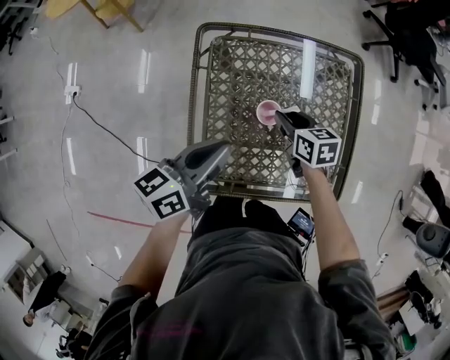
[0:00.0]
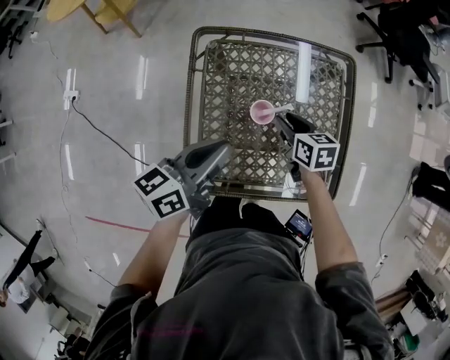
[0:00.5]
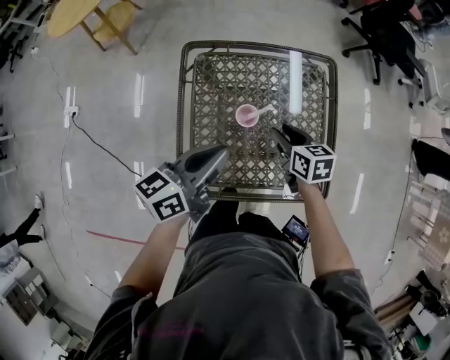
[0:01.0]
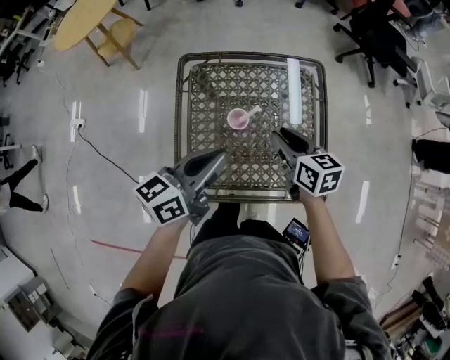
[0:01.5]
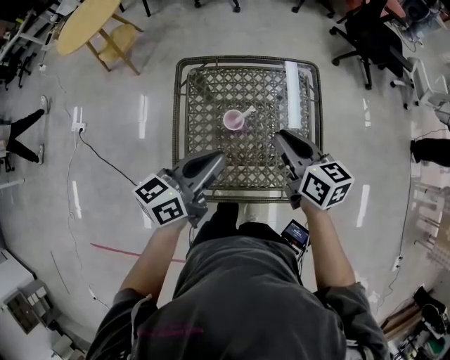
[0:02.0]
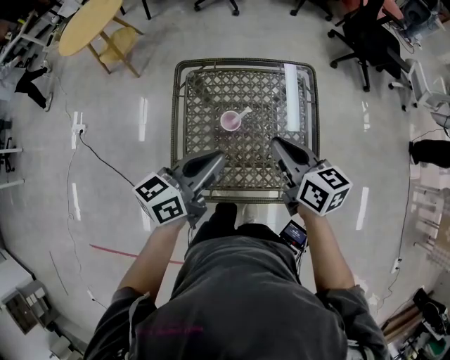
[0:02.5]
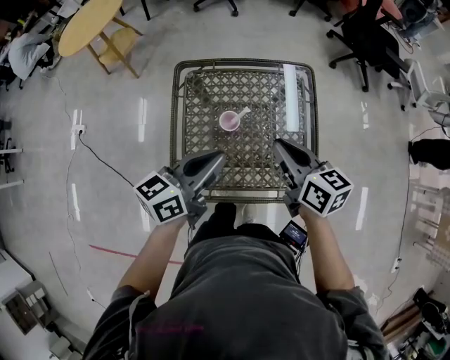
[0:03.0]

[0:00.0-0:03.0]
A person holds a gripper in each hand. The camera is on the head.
0:00.0 to 0:01.5: The left gripper is displaced to the right and upward by about 10 cm, while the right gripper travels upward, to the right and backward by about 15 cm.
0:01.5 to 0:03.0: The right gripper heads upward, covering roughly 10 cm, and closes.

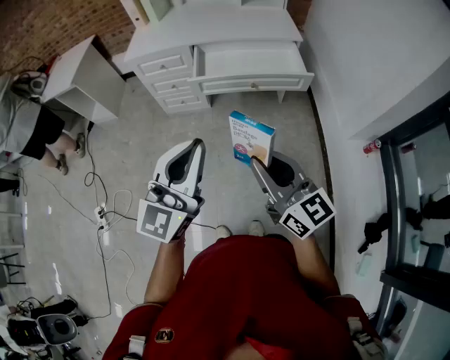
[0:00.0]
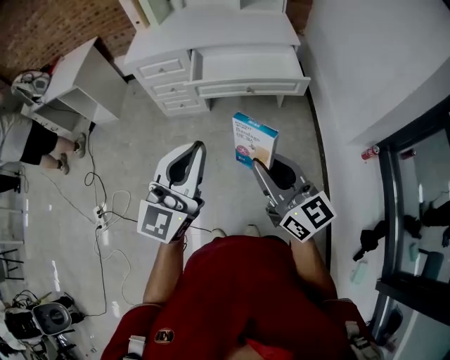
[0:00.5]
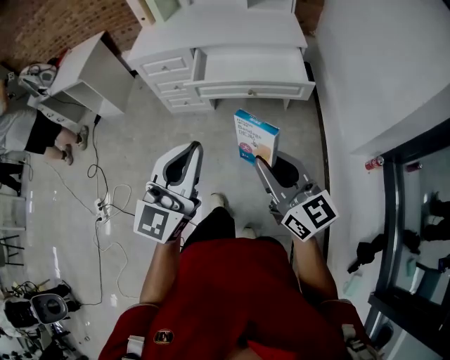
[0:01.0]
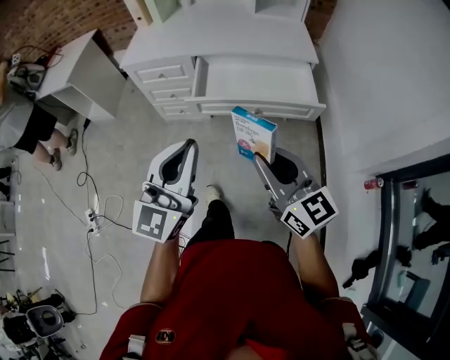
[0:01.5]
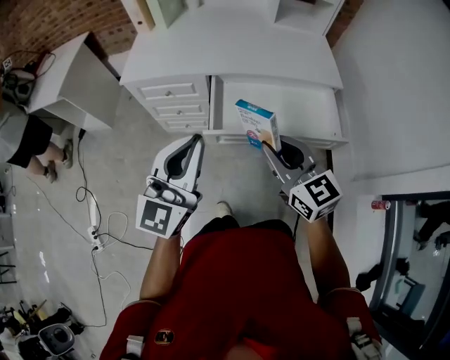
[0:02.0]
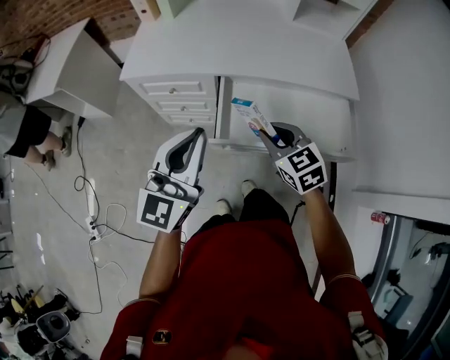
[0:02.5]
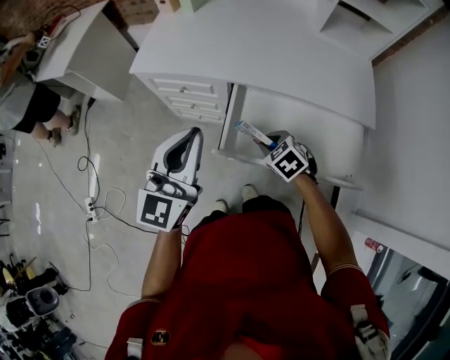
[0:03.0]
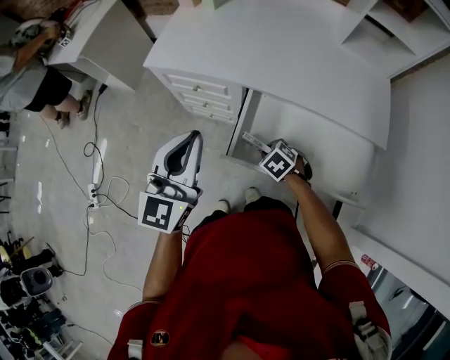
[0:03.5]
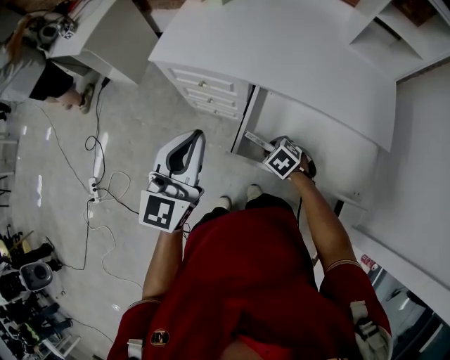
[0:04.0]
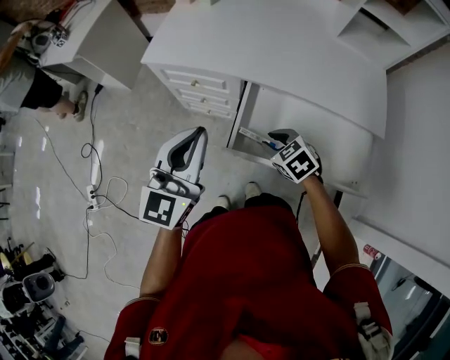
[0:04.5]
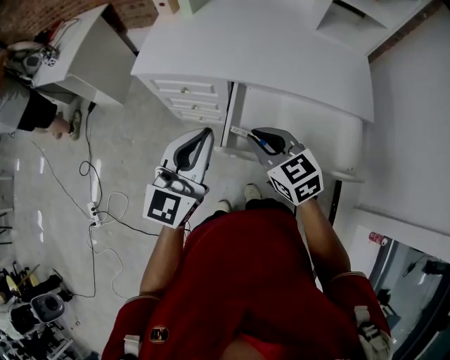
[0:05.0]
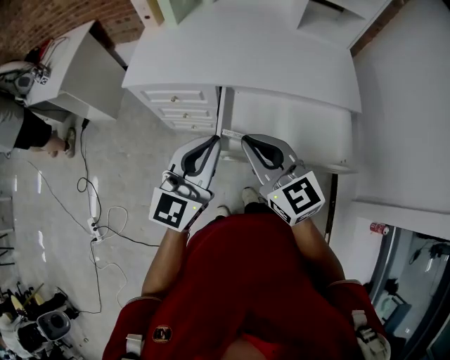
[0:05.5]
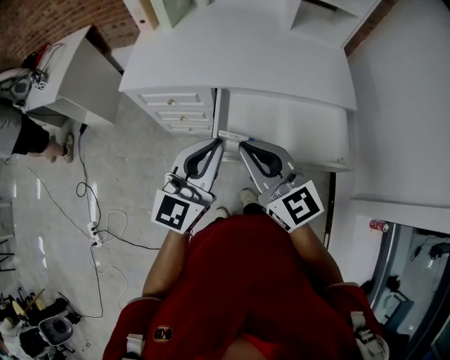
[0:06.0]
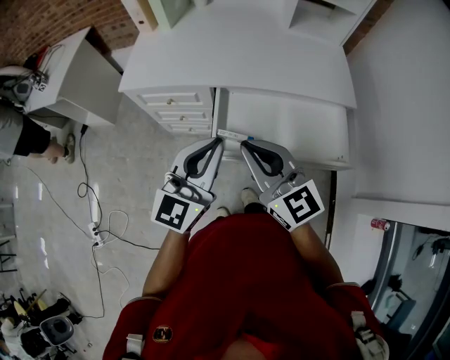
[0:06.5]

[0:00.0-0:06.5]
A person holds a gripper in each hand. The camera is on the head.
0:00.0 to 0:02.0: Both grippers travel together forward, some 35 cm.
0:02.0 to 0:04.5: The right gripper heads downward, covering about 20 cm, and tips its fingers downward by some 40 degrees. The left gripper moves about 15 cm.
0:04.5 to 0:06.5: The left gripper goes about 10 cm to the right and backward. The right gripper shifts roughly 25 cm upward, points its fingers roughly 50 degrees further upward, and closes.

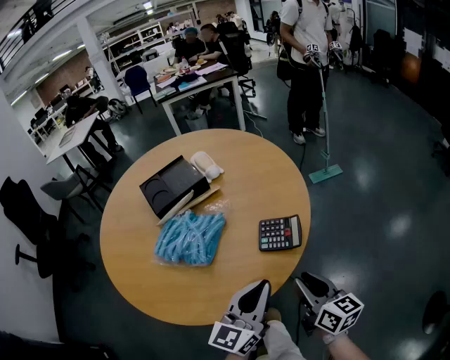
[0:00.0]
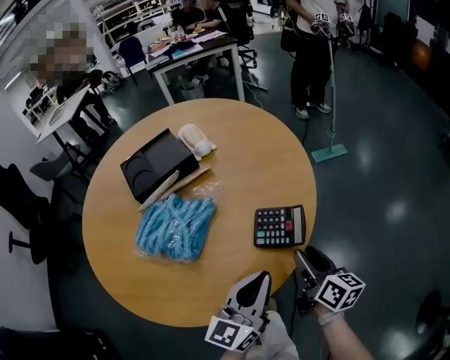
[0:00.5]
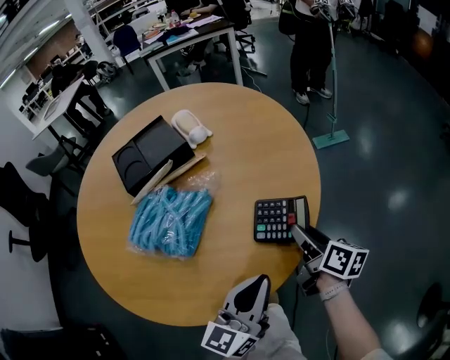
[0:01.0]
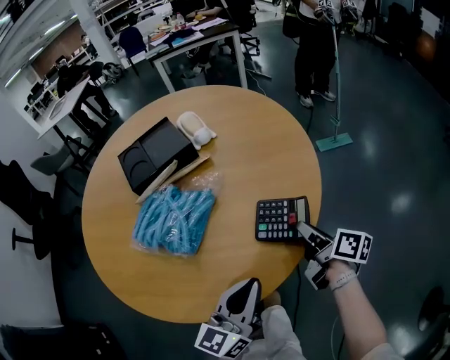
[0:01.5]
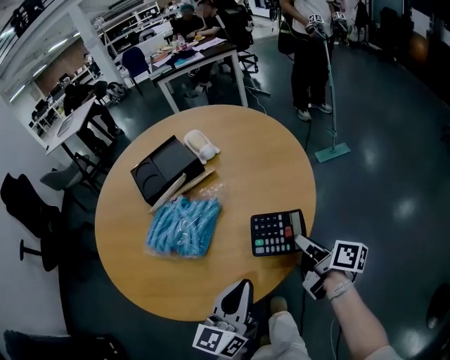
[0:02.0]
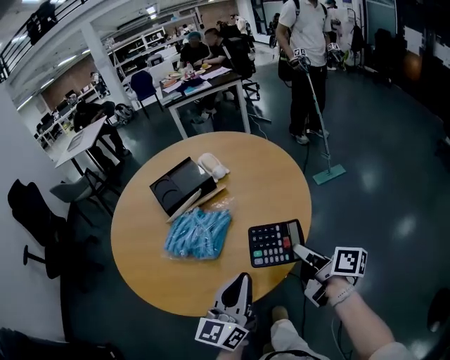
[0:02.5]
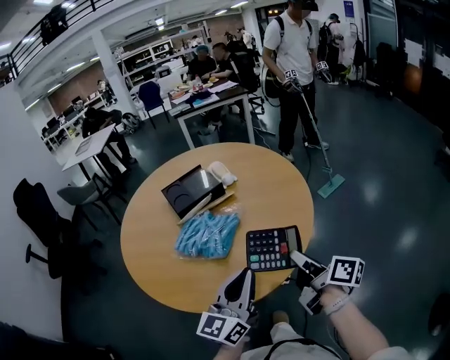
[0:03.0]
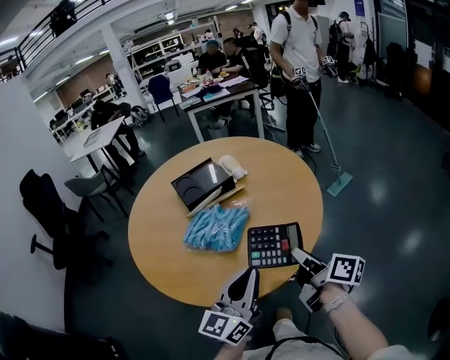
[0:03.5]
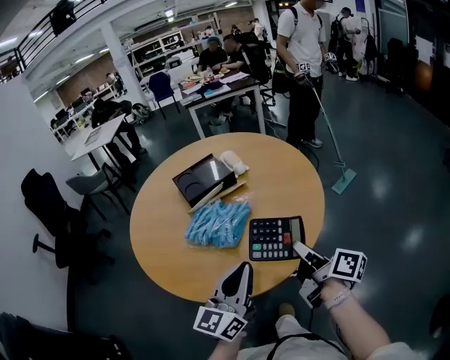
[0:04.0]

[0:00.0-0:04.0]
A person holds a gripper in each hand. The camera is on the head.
0:00.0 to 0:02.0: The left gripper shifts by roughly 5 cm. Meanwhile the right gripper heads forward and downward, covering about 15 cm, turns by roughly 40 degrees, and opens and closes again.
0:02.0 to 0:04.0: The right gripper heads upward, to the left and backward, covering roughly 20 cm. Meanwhile the left gripper is displaced upward and to the left by about 15 cm.

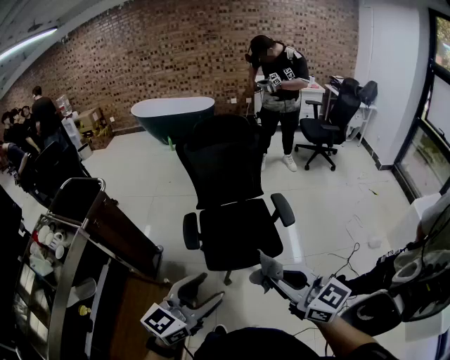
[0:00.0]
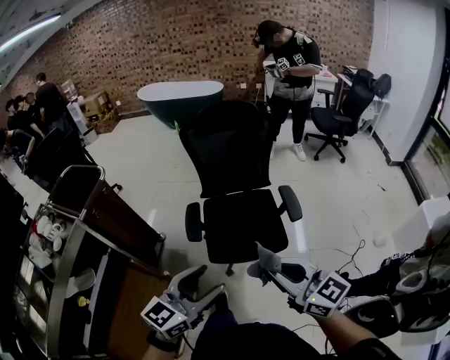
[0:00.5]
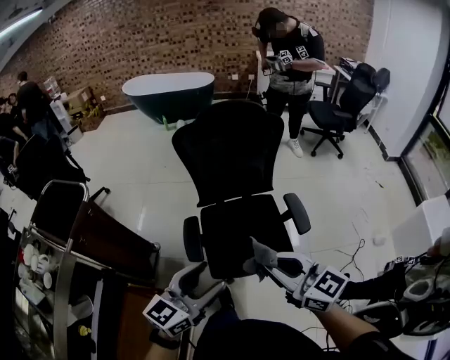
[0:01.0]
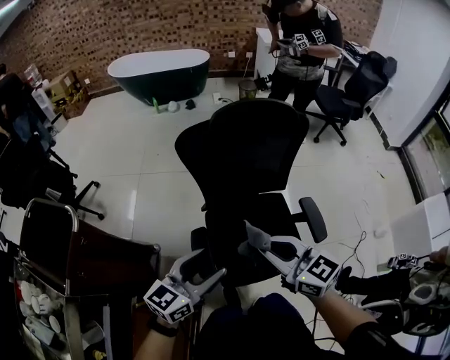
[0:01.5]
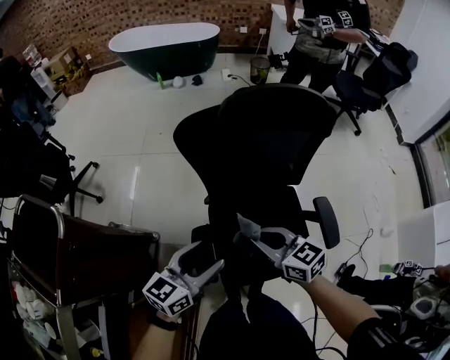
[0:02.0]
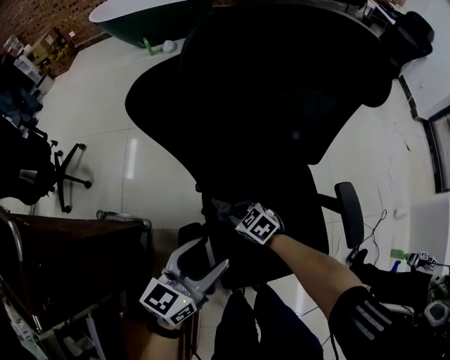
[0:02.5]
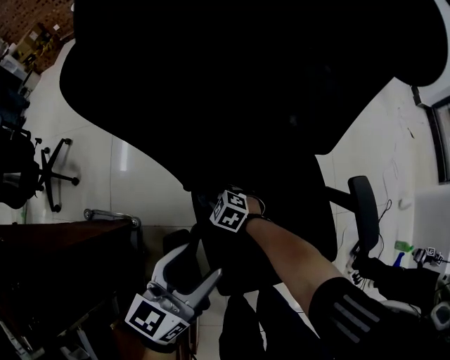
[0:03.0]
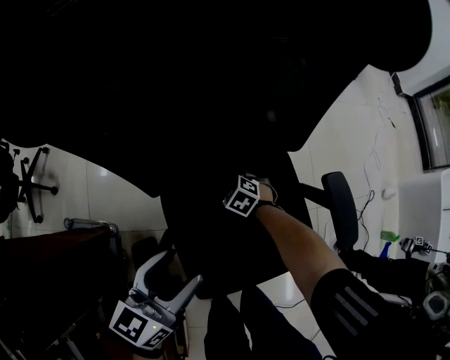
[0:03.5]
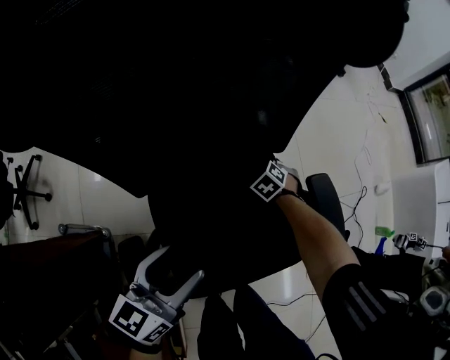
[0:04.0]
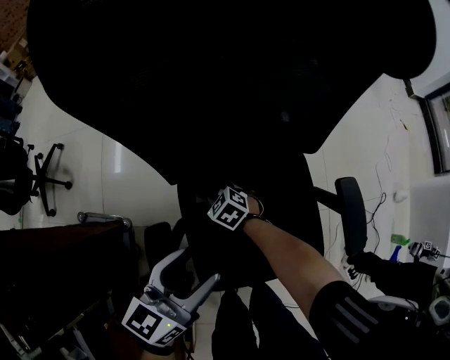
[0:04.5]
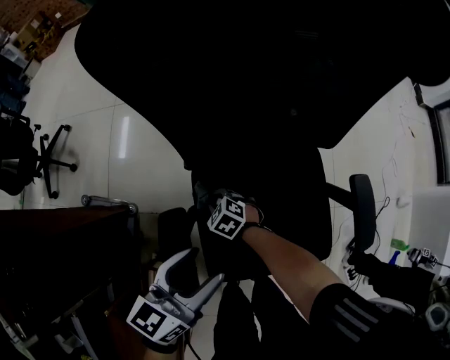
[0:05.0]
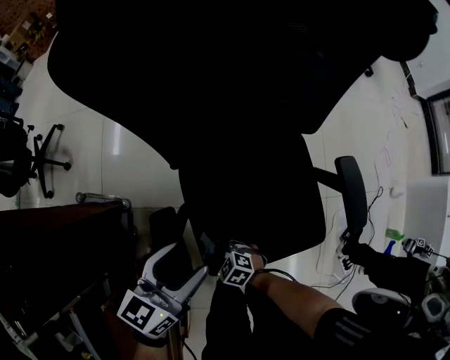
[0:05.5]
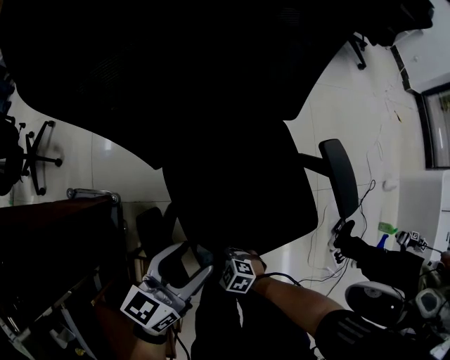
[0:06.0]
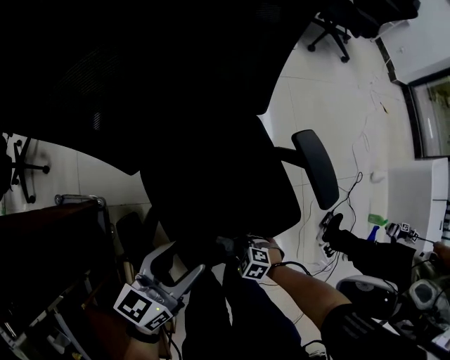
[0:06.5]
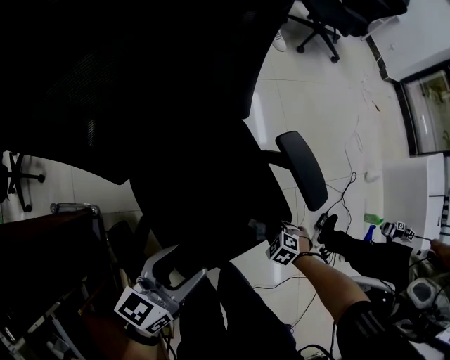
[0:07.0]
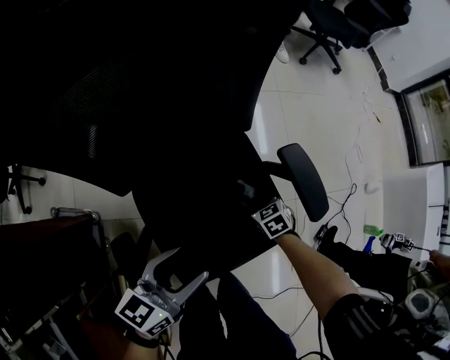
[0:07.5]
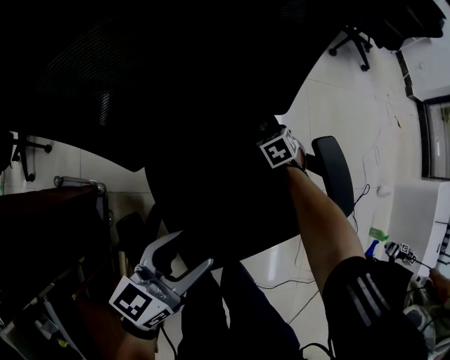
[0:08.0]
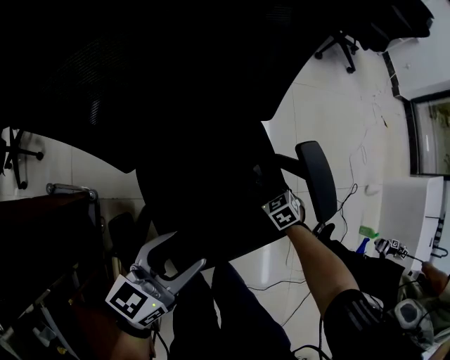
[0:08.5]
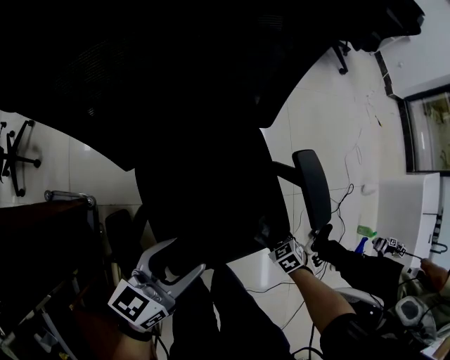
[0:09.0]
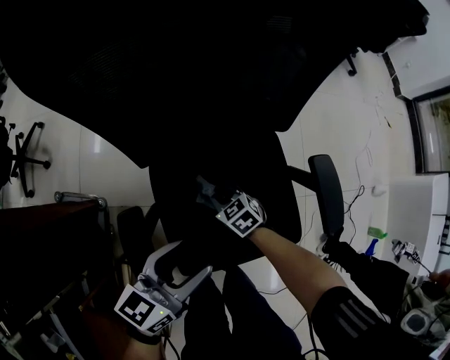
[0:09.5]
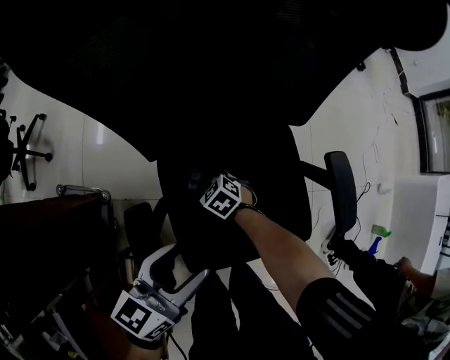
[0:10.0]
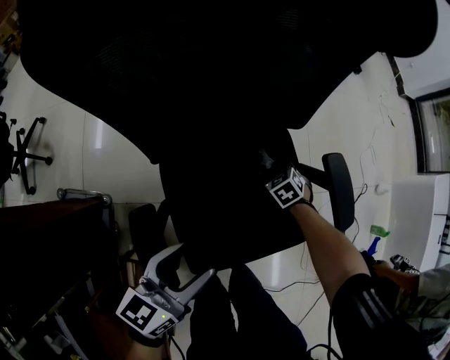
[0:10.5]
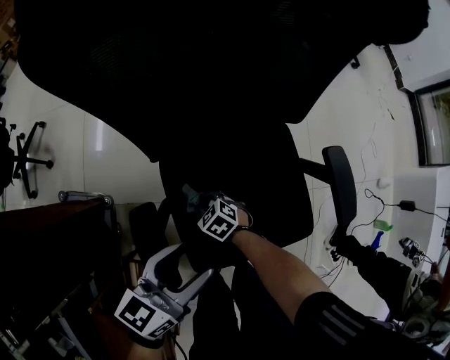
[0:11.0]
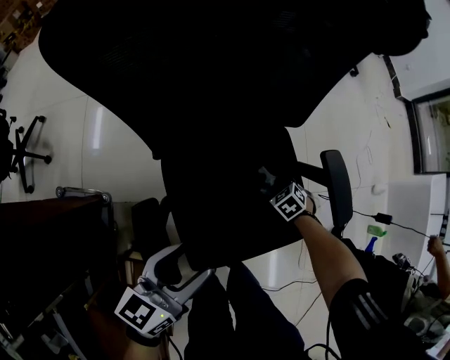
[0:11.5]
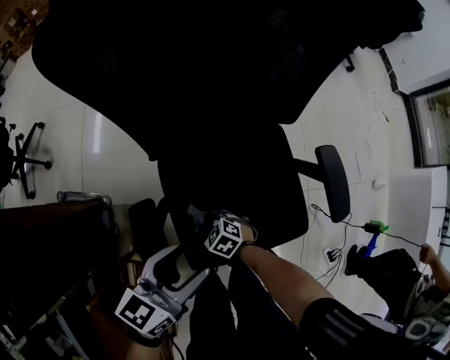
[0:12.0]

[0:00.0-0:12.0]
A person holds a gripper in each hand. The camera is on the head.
0:00.0 to 0:02.0: The two grippers travel together, forward, approximately 50 cm. Both grippers travel together downward, approximately 20 cm. The left gripper turns by approximately 20 degrees. The right gripper changes its angle by approximately 20 degrees.
0:02.0 to 0:04.0: The left gripper heads downward, covering some 20 cm. The right gripper is displaced downward by about 50 cm, and tips its fingers downward by some 50 degrees.
0:04.0 to 0:06.0: The left gripper changes place by about 10 cm; the right gripper moves approximately 50 cm, and rotates approximately 40 degrees.
0:06.0 to 0:08.0: The right gripper moves some 50 cm, and rotates roughly 40 degrees. The left gripper shifts by roughly 5 cm.
0:08.0 to 0:10.0: The right gripper moves to the left and backward, some 30 cm, and changes its angle by about 30 degrees, while the left gripper shifts roughly 5 cm to the left.
